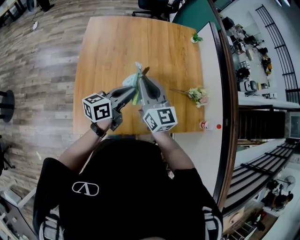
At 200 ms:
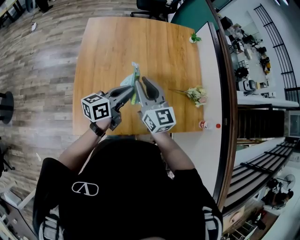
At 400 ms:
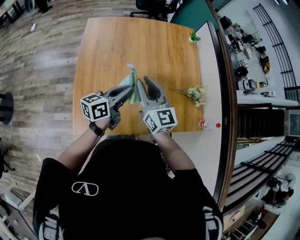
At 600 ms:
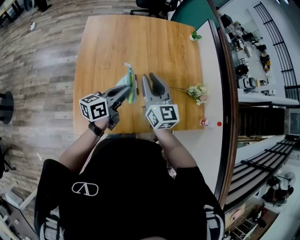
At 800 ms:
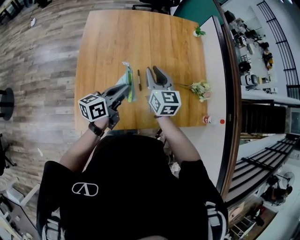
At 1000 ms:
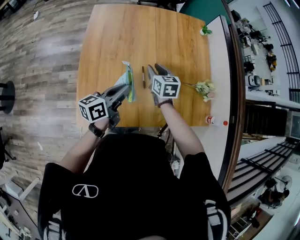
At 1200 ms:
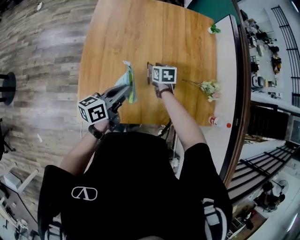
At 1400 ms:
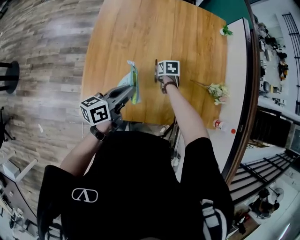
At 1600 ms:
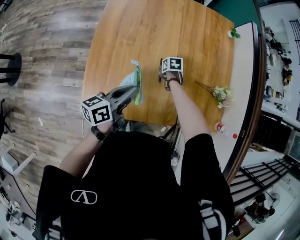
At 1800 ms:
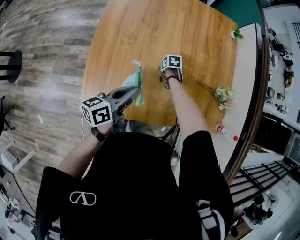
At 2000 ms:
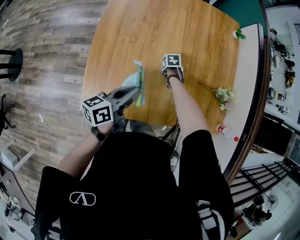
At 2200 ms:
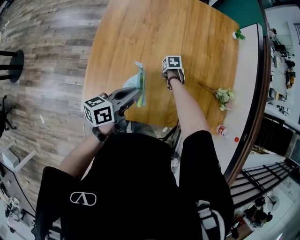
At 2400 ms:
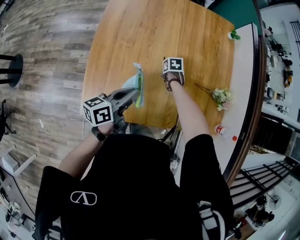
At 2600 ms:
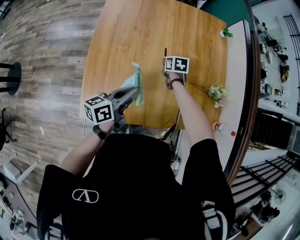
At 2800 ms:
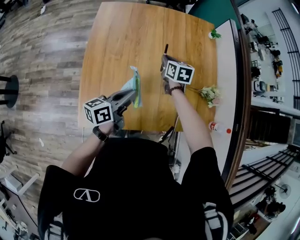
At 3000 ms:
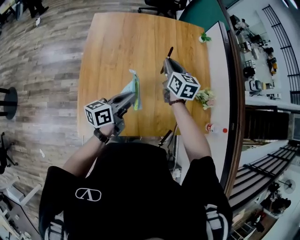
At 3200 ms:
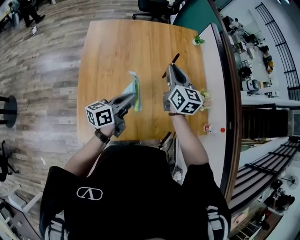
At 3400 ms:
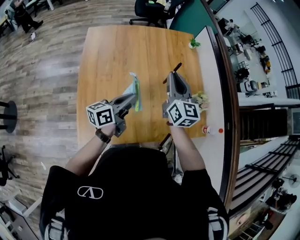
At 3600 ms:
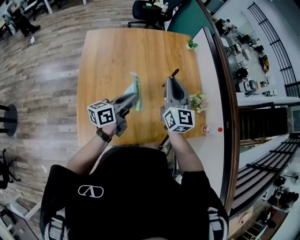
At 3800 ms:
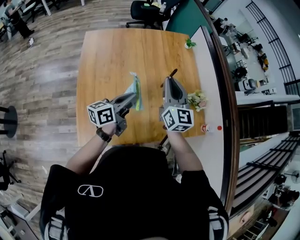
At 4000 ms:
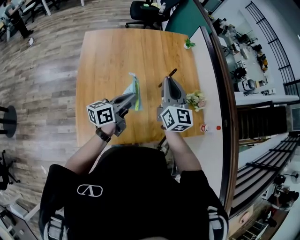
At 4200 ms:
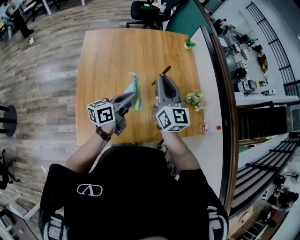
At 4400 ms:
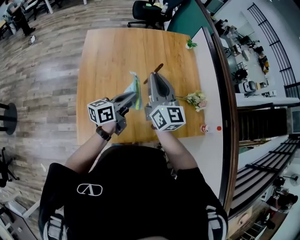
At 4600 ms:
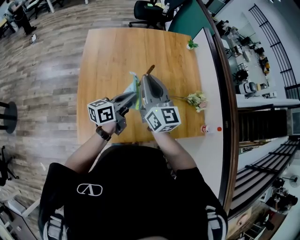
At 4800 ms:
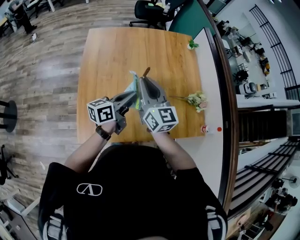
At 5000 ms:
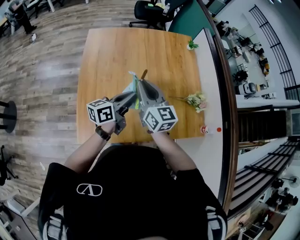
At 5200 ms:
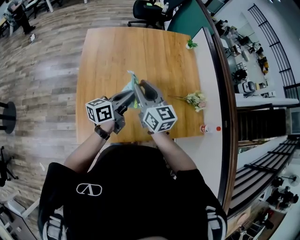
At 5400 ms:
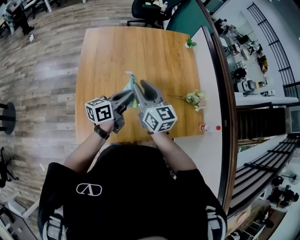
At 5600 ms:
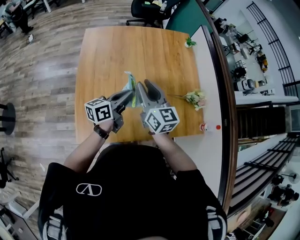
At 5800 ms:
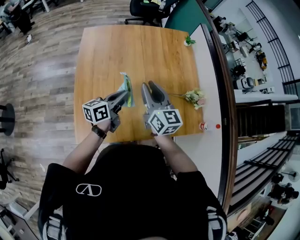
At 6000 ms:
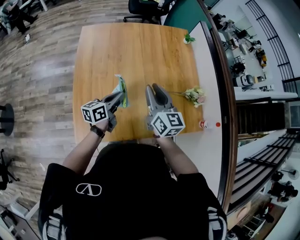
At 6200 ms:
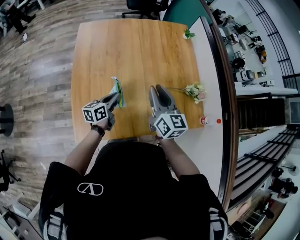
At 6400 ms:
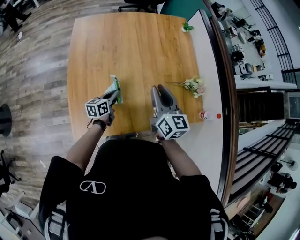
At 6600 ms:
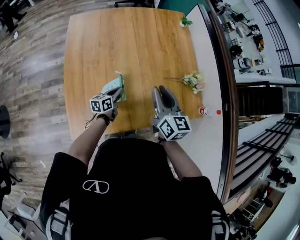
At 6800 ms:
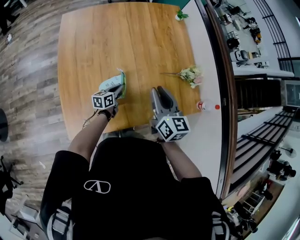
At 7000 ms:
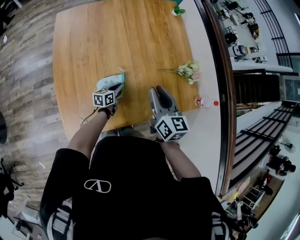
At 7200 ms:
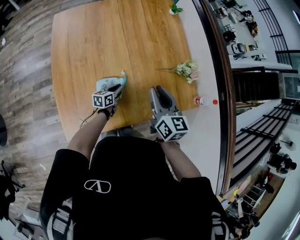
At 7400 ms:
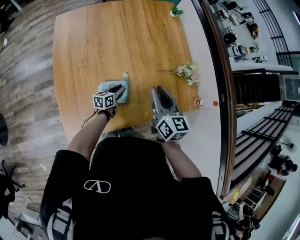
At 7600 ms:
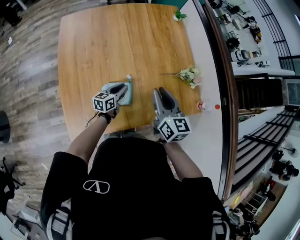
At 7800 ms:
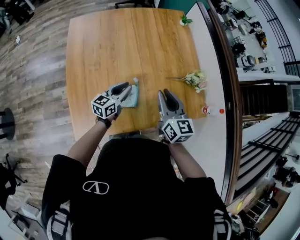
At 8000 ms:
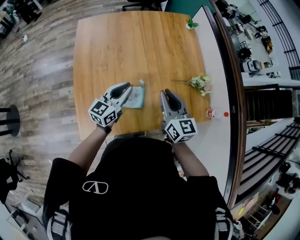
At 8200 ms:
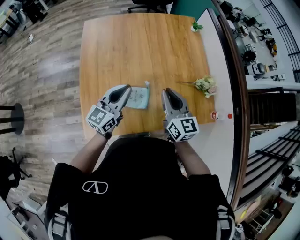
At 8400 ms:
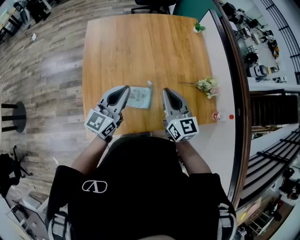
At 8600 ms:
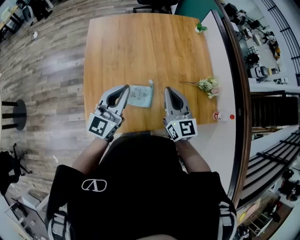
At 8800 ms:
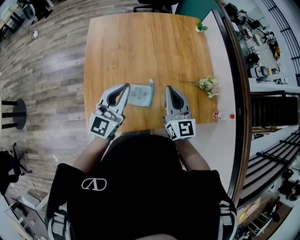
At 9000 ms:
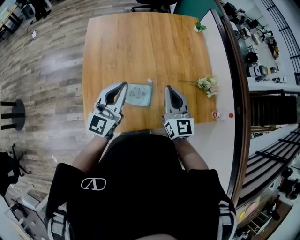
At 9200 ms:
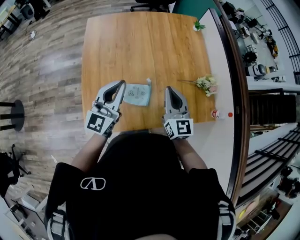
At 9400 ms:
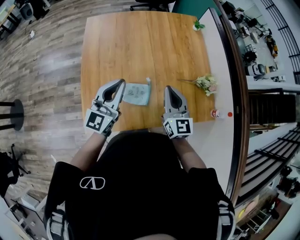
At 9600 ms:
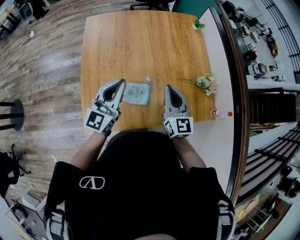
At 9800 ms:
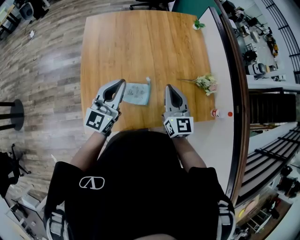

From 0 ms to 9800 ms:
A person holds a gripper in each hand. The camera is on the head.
From 0 ms to 1400 ms: The right gripper travels downward by roughly 35 cm, and tilts its fingers about 60 degrees downward; the left gripper travels downward and to the left by roughly 10 cm.
From 1400 ms to 2800 ms: The right gripper travels upward by about 20 cm, and changes its angle by some 30 degrees.
From 2800 ms to 4200 ms: The right gripper heads upward and backward, covering roughly 25 cm, and tips its fingers upward by about 40 degrees, while the left gripper moves upward, approximately 5 cm.
From 4200 ms to 5600 ms: The right gripper goes roughly 5 cm to the left.
From 5600 ms to 7000 ms: The left gripper heads downward, covering approximately 30 cm, and turns by some 20 degrees, while the right gripper goes some 15 cm to the right and downward, and swivels roughly 20 degrees.
From 7000 ms to 8400 ms: The right gripper moves about 5 cm, while the left gripper heads upward, covering roughly 35 cm, and turns by some 40 degrees.
From 8400 ms to 9800 ms: The grippers move only a little.

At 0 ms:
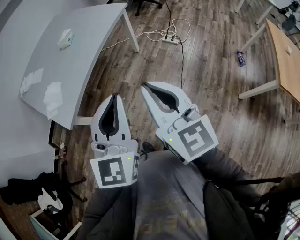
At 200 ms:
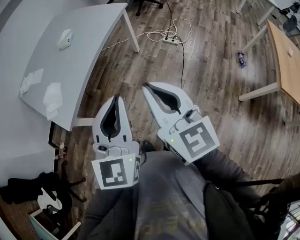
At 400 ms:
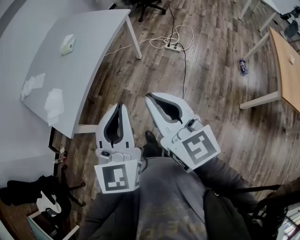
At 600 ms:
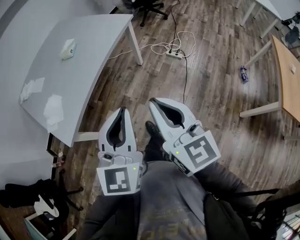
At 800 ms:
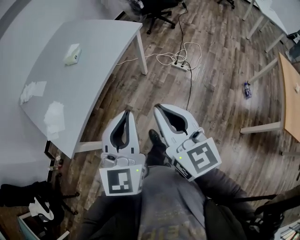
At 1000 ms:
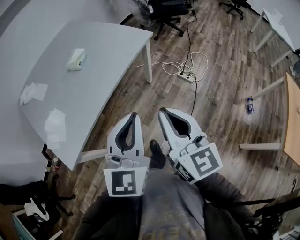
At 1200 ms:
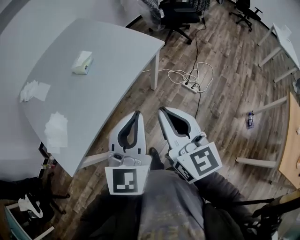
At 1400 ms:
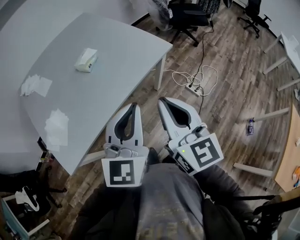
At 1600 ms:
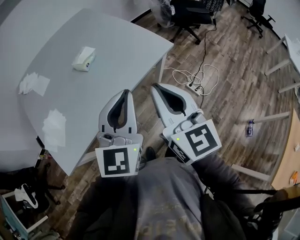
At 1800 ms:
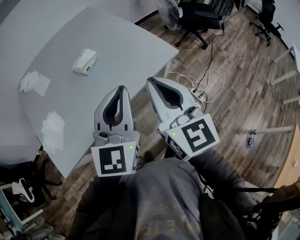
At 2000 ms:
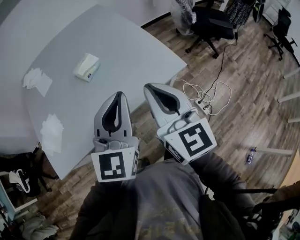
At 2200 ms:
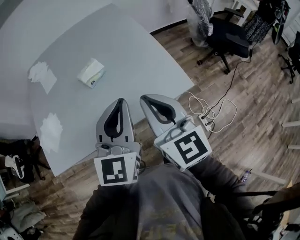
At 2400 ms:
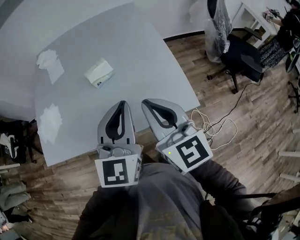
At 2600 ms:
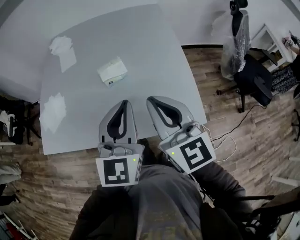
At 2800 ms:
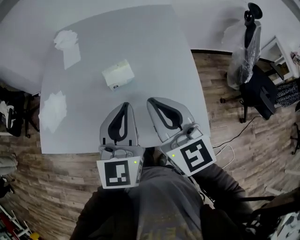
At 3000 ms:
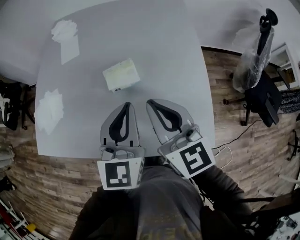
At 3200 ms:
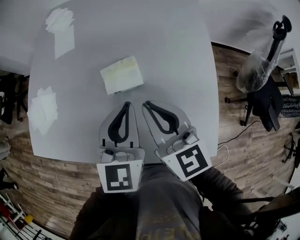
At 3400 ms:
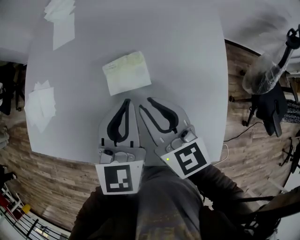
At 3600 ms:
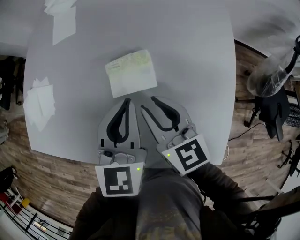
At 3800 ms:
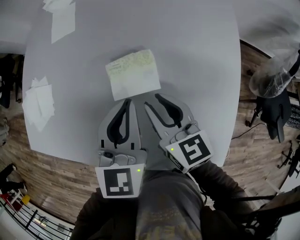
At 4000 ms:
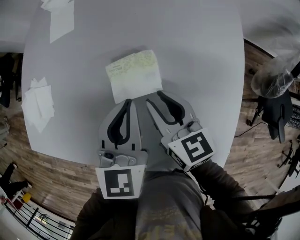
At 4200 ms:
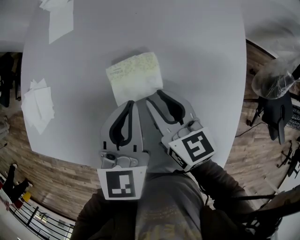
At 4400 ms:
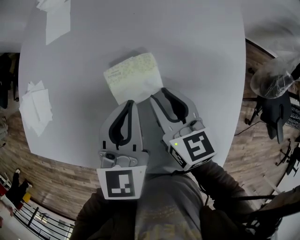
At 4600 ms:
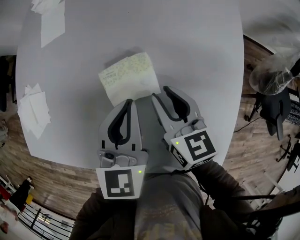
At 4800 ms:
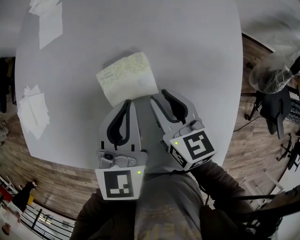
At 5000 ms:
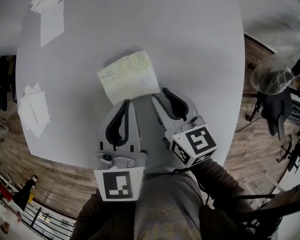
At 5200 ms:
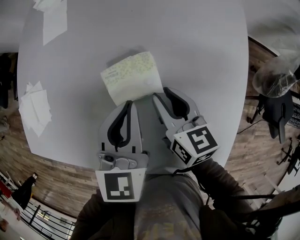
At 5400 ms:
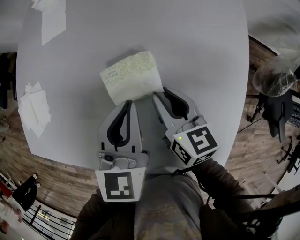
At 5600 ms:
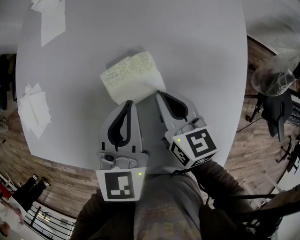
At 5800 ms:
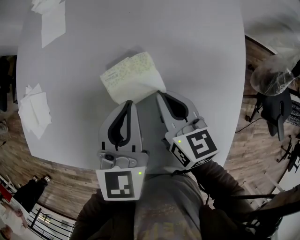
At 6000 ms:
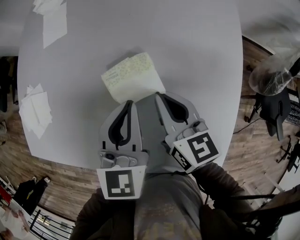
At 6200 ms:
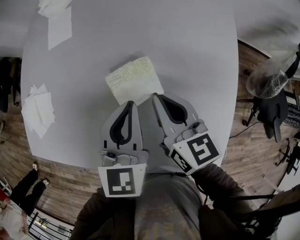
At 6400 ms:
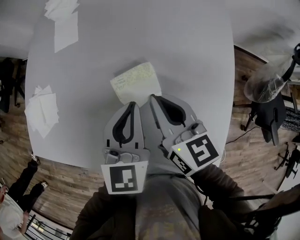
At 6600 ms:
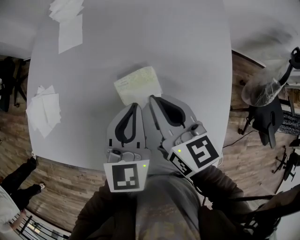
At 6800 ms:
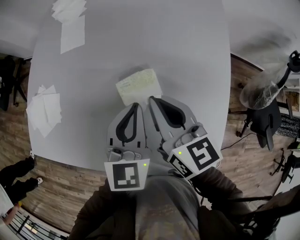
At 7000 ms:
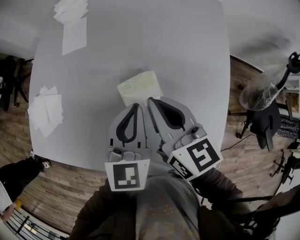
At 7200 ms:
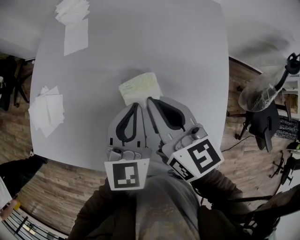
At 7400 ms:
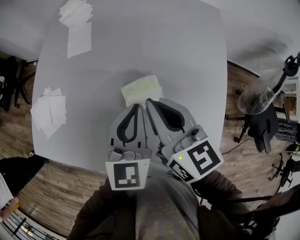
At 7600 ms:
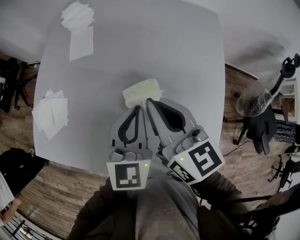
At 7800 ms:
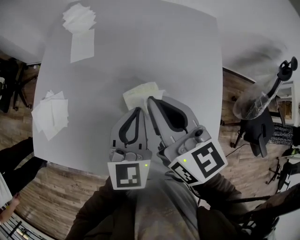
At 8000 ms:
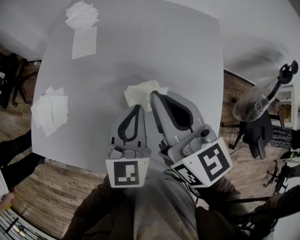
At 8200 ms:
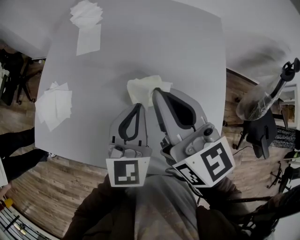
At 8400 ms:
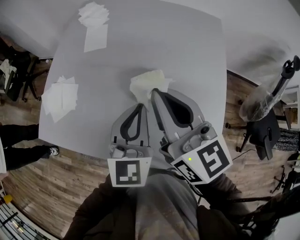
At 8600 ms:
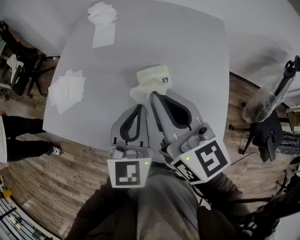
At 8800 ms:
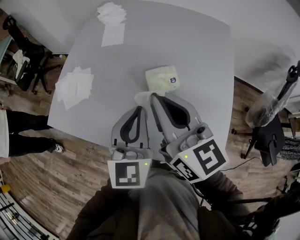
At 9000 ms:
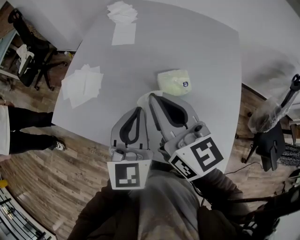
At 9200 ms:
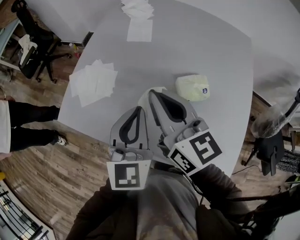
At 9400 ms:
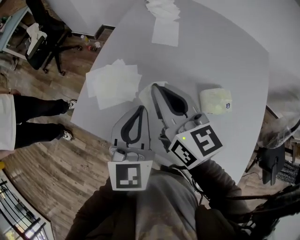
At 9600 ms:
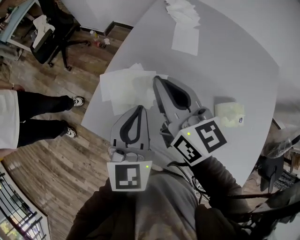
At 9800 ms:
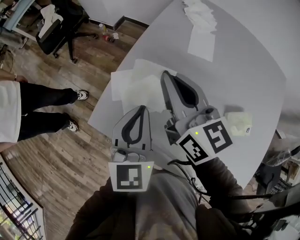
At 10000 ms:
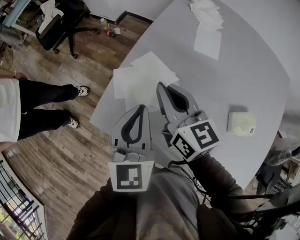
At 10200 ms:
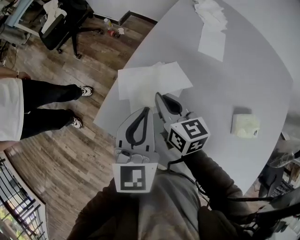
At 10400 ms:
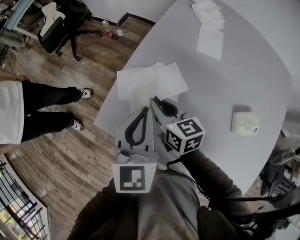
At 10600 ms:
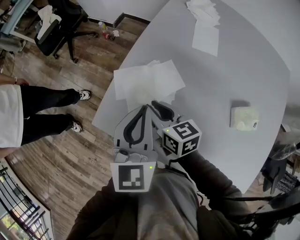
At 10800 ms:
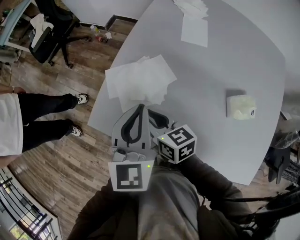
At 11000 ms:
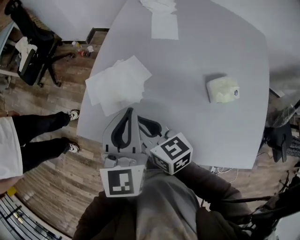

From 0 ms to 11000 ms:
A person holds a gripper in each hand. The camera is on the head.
From 0 ms to 1600 ms: The pair of grippers is taken forward, some 40 cm.
From 1600 ms to 3200 ms: The left gripper moves some 40 cm, and rotates approximately 50 degrees. The right gripper shifts by approximately 40 cm, and turns by approximately 50 degrees.
From 3200 ms to 4800 ms: The grippers both shift downward and forward by about 15 cm. The right gripper changes its angle by approximately 20 degrees, and opens its fingers.
From 4800 ms to 6200 ms: The right gripper travels upward by some 5 cm, and closes up.
From 6200 ms to 7800 ms: The right gripper shifts approximately 15 cm upward, while the left gripper goes approximately 5 cm upward.
From 7800 ms to 9400 ms: Both grippers travel together to the left, approximately 30 cm.
From 9400 ms to 11000 ms: The right gripper goes approximately 20 cm downward and to the left; the left gripper travels to the left by roughly 10 cm.

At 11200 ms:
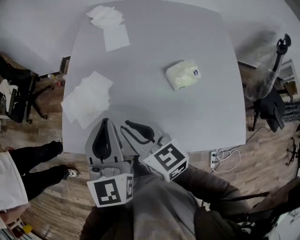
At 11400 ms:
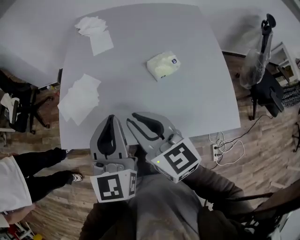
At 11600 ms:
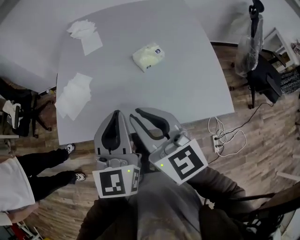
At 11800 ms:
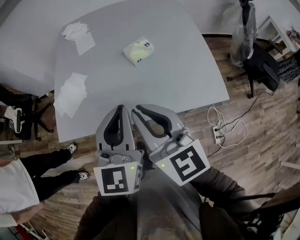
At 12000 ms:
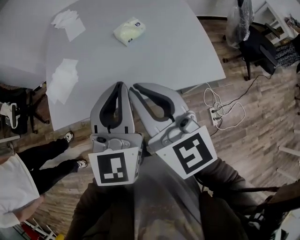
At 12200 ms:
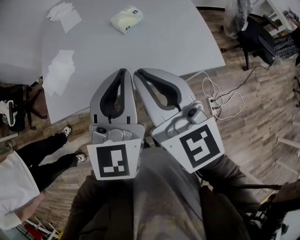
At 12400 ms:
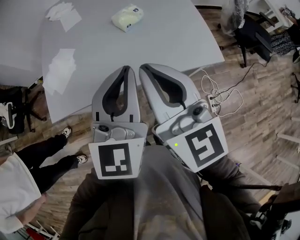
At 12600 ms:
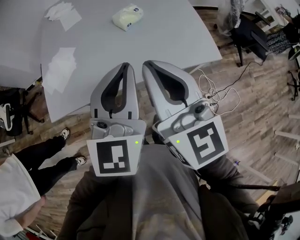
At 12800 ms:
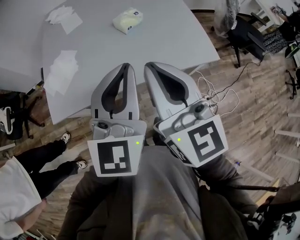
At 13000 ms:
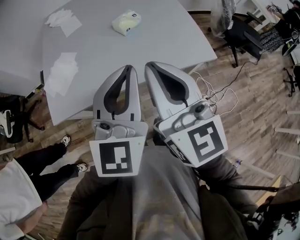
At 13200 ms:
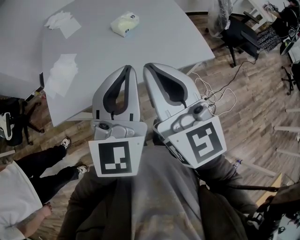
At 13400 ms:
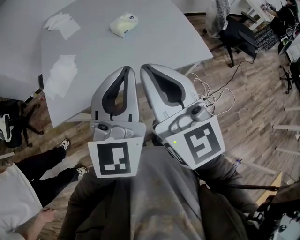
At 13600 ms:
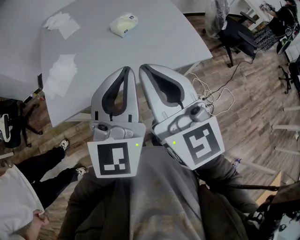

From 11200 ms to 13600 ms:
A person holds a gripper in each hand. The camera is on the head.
From 11200 ms to 12400 ms: The left gripper shifts by some 30 cm, and changes its angle by about 30 degrees. Meanwhile the right gripper shifts by approximately 30 cm, and changes its angle by approximately 40 degrees.
From 12400 ms to 13600 ms: The grippers both shift backward by some 5 cm.
